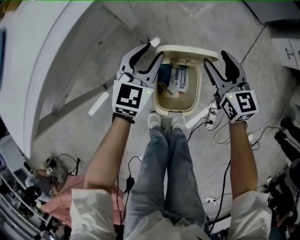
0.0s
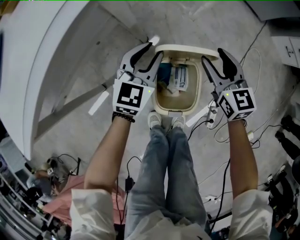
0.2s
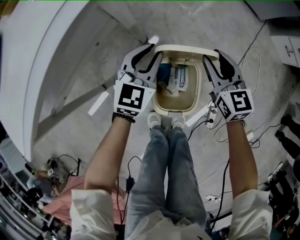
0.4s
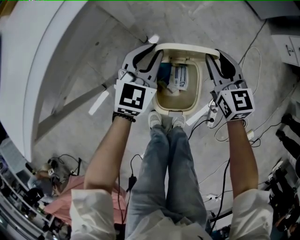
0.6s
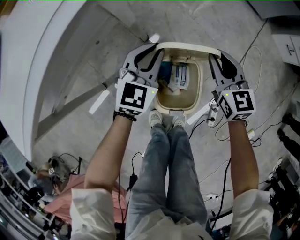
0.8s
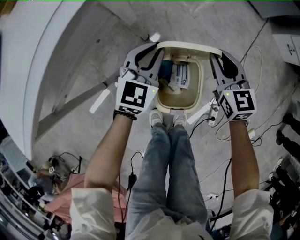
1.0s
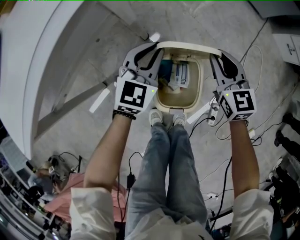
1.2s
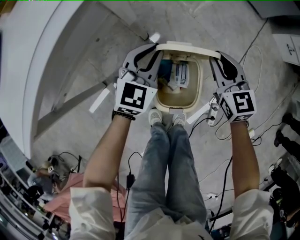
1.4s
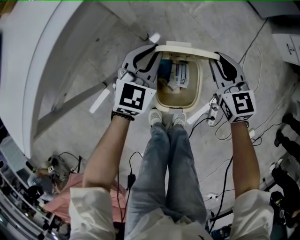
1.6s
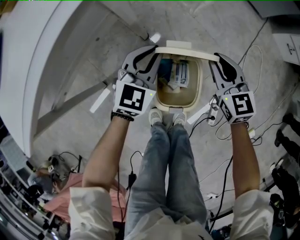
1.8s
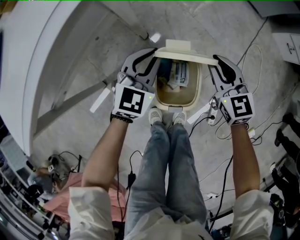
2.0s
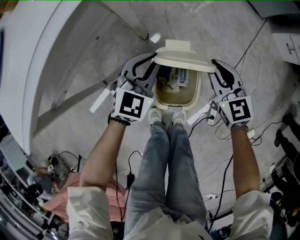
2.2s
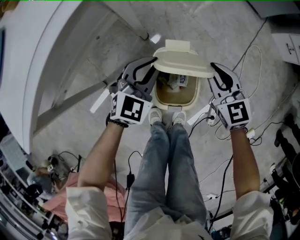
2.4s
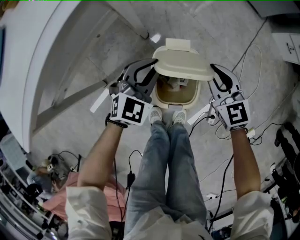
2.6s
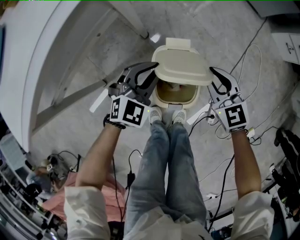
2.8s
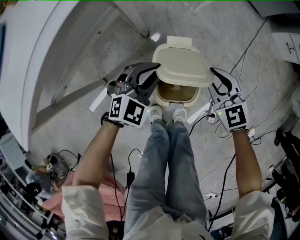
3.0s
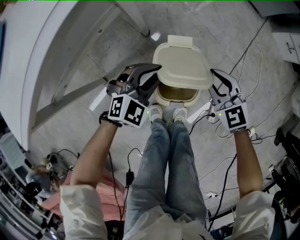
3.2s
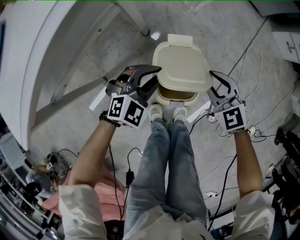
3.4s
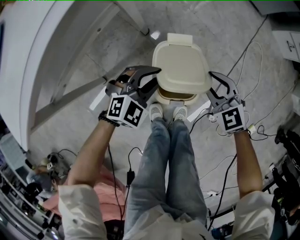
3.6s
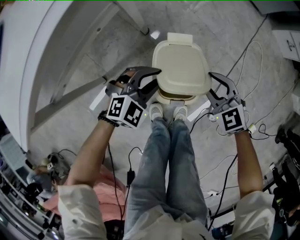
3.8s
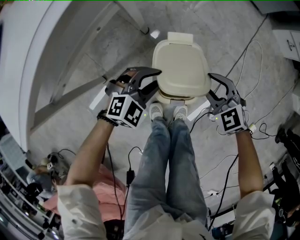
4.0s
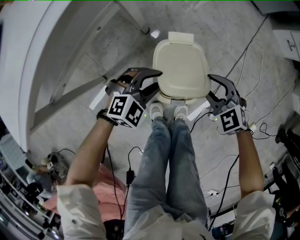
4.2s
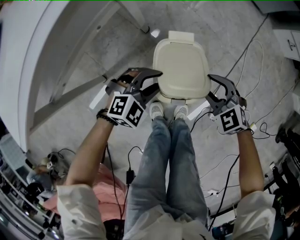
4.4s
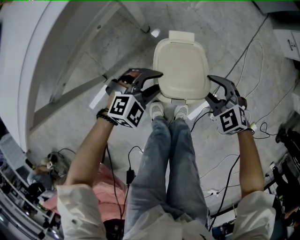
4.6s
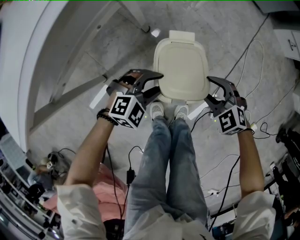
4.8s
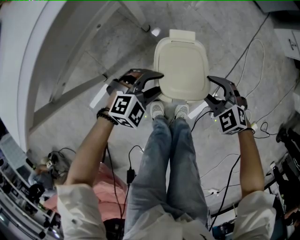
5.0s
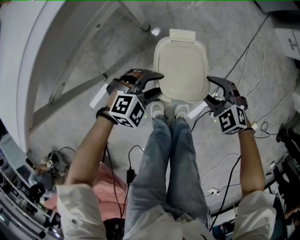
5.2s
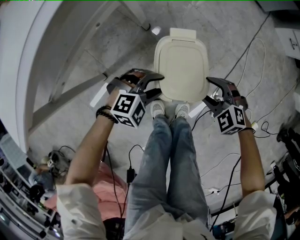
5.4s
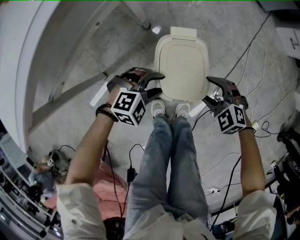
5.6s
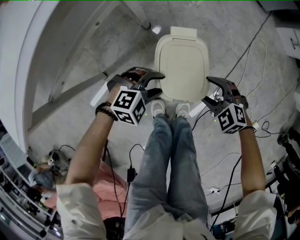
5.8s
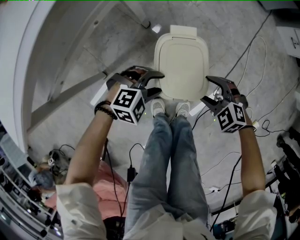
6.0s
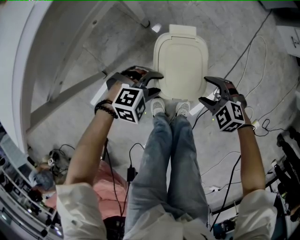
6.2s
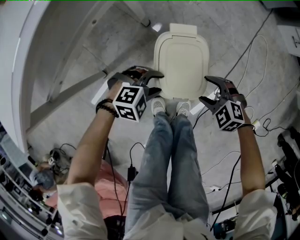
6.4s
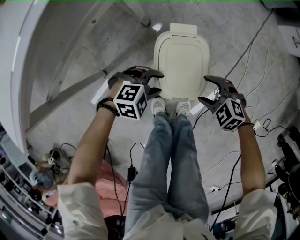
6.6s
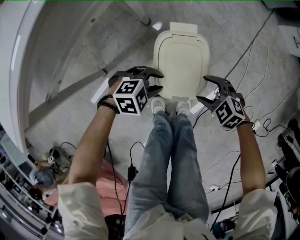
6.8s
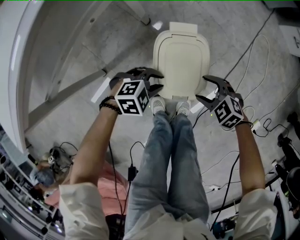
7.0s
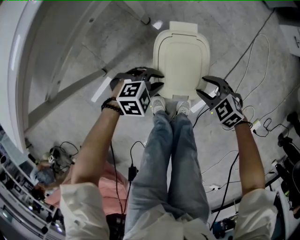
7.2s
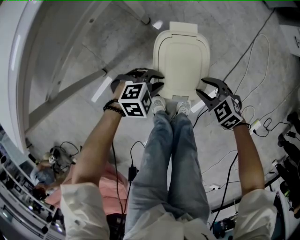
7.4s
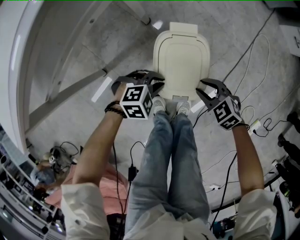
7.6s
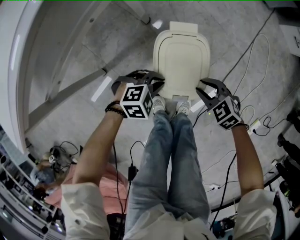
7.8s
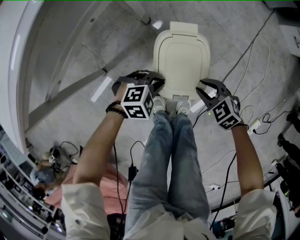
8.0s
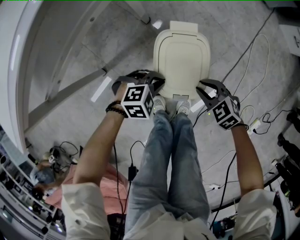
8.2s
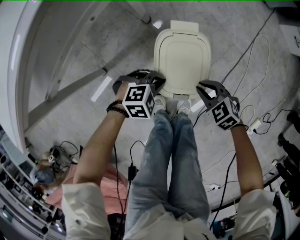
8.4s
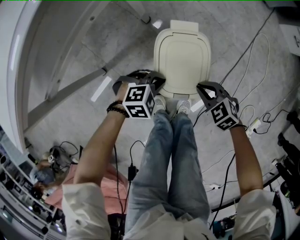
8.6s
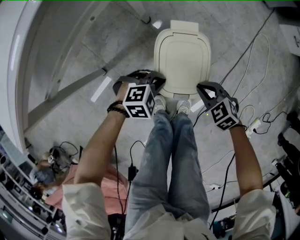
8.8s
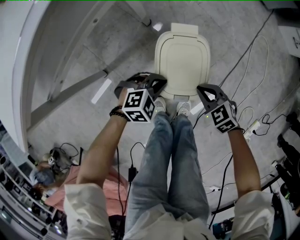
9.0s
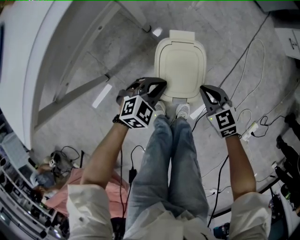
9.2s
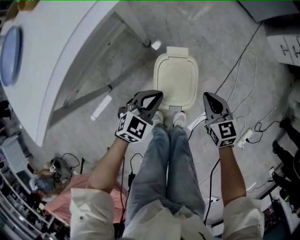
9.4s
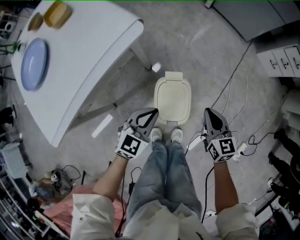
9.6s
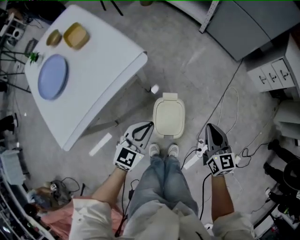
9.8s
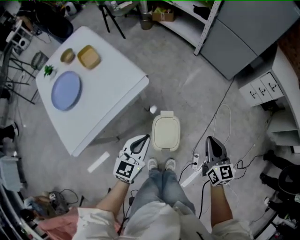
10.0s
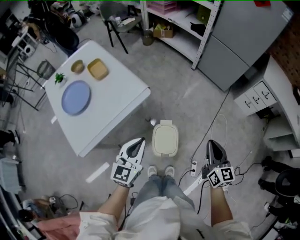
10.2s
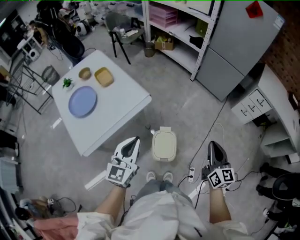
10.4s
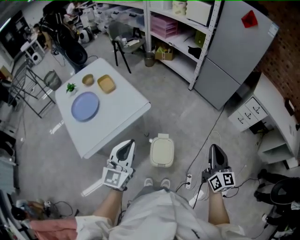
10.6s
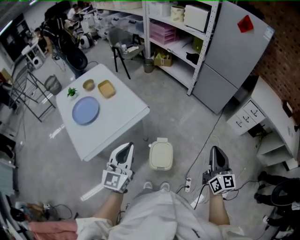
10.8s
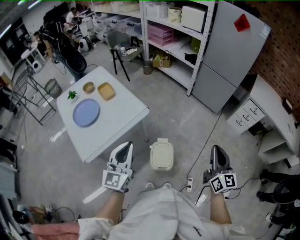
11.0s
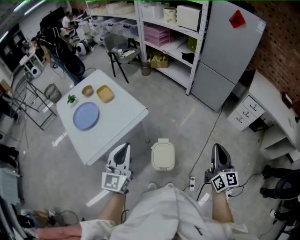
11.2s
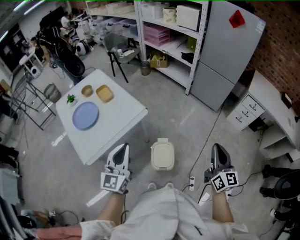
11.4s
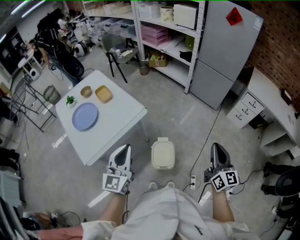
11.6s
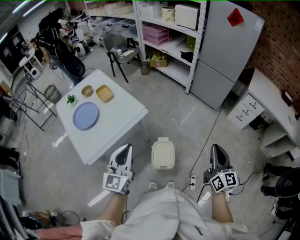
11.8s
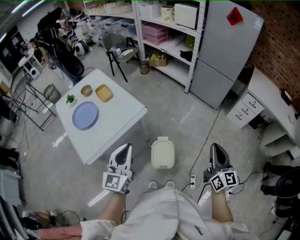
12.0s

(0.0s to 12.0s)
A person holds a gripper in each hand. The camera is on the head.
0.0s - 1.6s: The right gripper closes up.
1.6s - 3.0s: The two grippers go roughly 10 cm backward. The left gripper changes its angle by some 20 degrees.
3.0s - 4.4s: The two grippers go some 5 cm backward. The right gripper turns by approximately 20 degrees.
4.4s - 6.0s: The left gripper shifts by approximately 5 cm; the right gripper moves downward, about 5 cm.
6.0s - 7.6s: The left gripper closes up.
7.6s - 9.0s: The grippers move only a little.
9.0s - 10.4s: Both grippers travel together upward, about 60 cm. The right gripper tips its fingers upward by some 50 degrees. The left gripper points its fingers about 50 degrees further upward.
10.4s - 12.0s: Both grippers move upward and backward, roughly 10 cm.

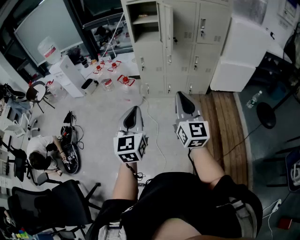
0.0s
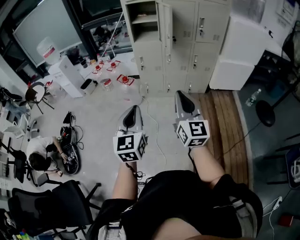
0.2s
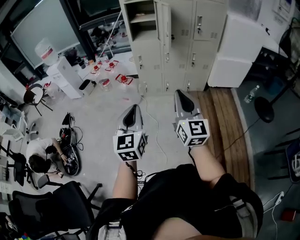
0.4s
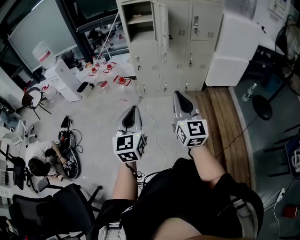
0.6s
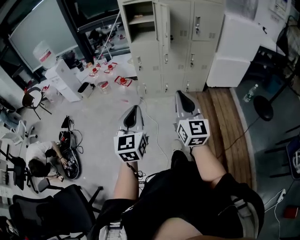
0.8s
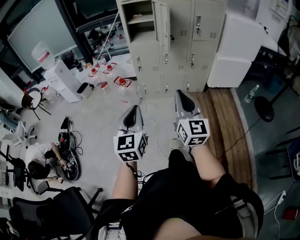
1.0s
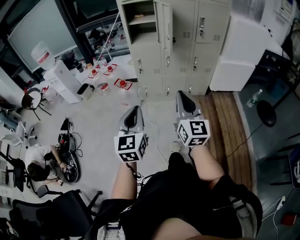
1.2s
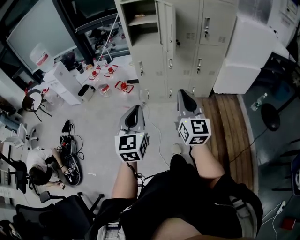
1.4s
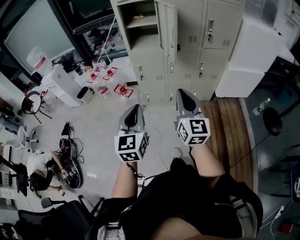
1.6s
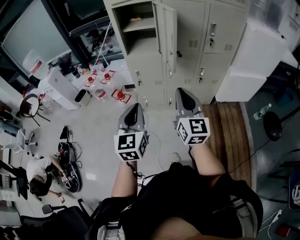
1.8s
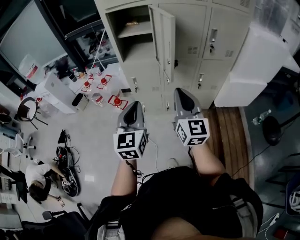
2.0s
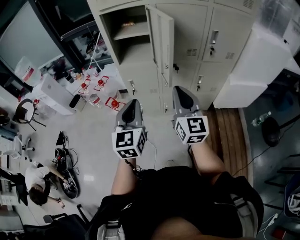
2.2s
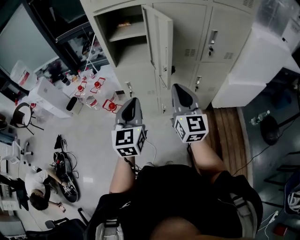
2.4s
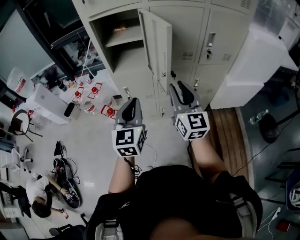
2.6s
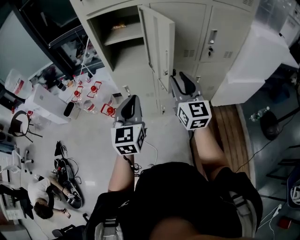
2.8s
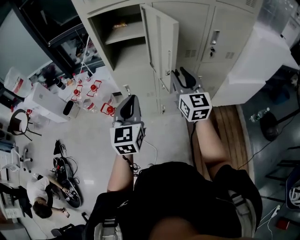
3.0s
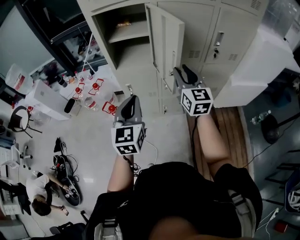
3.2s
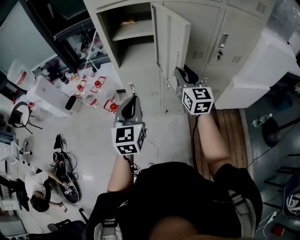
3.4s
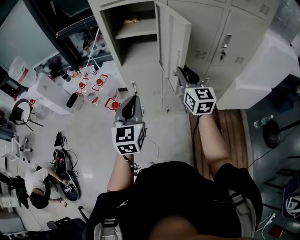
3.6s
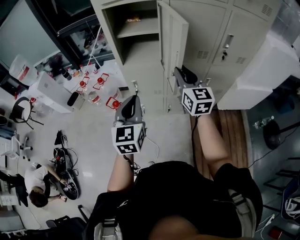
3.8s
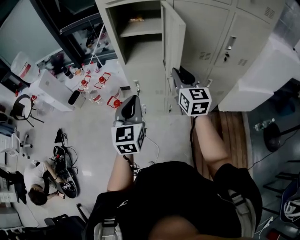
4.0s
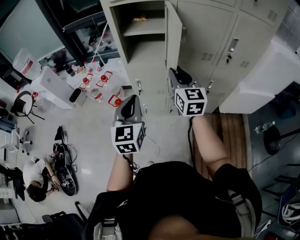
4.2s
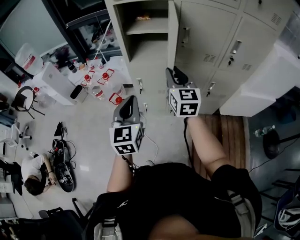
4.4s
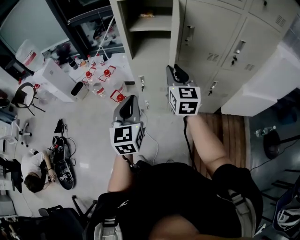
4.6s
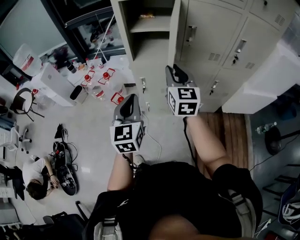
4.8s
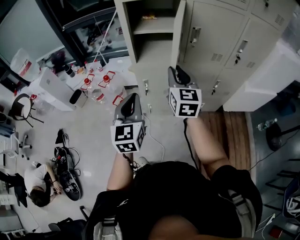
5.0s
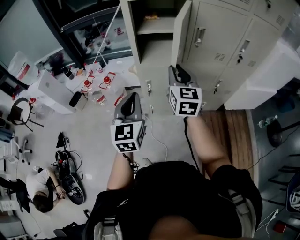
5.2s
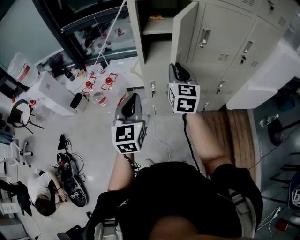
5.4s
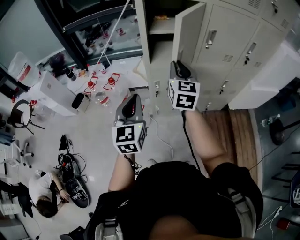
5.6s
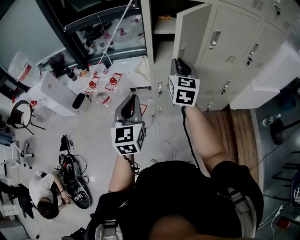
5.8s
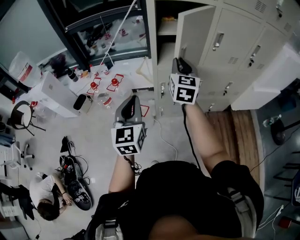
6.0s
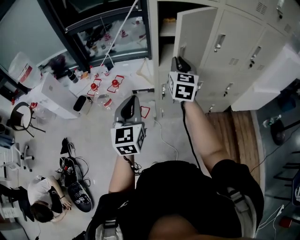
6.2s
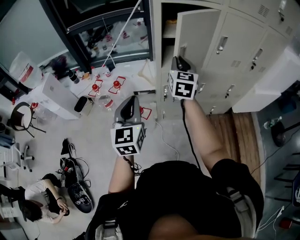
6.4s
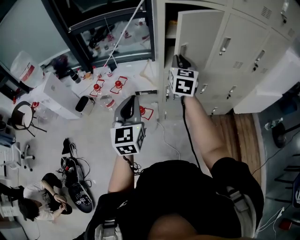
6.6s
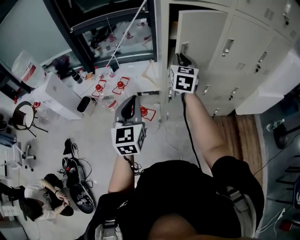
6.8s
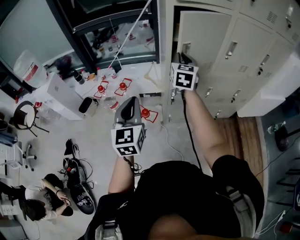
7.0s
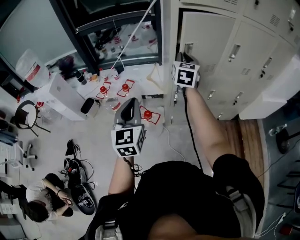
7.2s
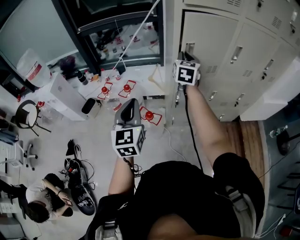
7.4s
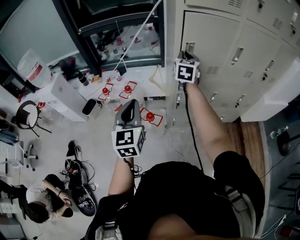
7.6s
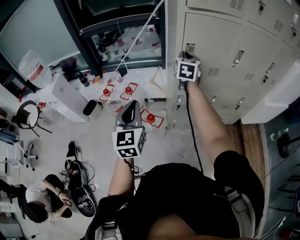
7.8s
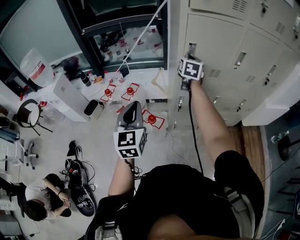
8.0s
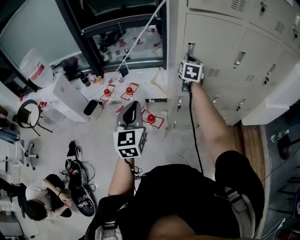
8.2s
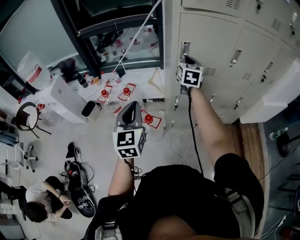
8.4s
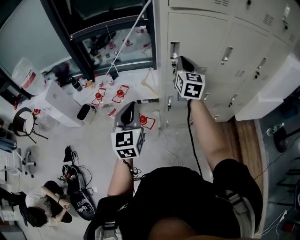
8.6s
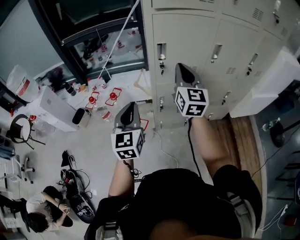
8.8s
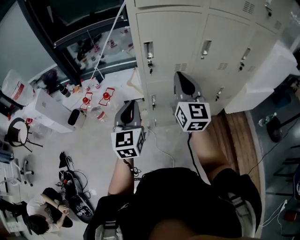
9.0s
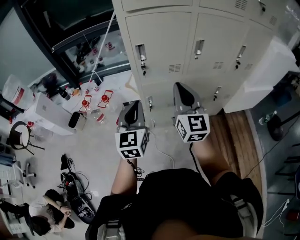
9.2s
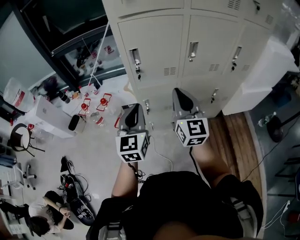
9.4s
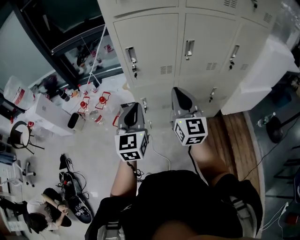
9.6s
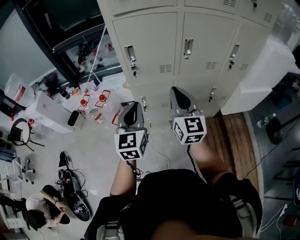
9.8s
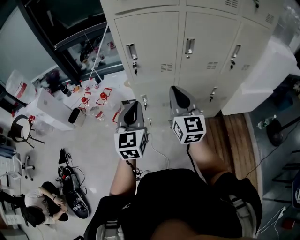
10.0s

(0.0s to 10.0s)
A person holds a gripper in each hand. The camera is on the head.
0.0s - 1.4s: Both grippers travel together forward, about 15 cm.
1.4s - 2.8s: The grippers both shift forward by approximately 35 cm. The right gripper opens.
2.8s - 4.2s: The right gripper is displaced to the left and forward by some 10 cm. The left gripper travels to the left by approximately 5 cm.
4.2s - 5.8s: The left gripper travels to the left by roughly 20 cm. The right gripper shifts some 20 cm to the left and forward.
5.8s - 7.2s: The left gripper moves to the left, roughly 10 cm. The right gripper goes about 15 cm forward and to the left.
7.2s - 8.6s: The right gripper reaches approximately 5 cm forward, then returns.
8.6s - 10.0s: The right gripper goes approximately 25 cm backward and to the right, while the left gripper moves to the right, roughly 20 cm.

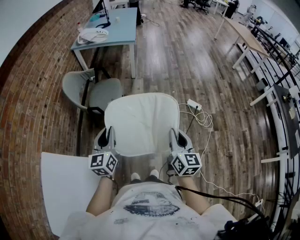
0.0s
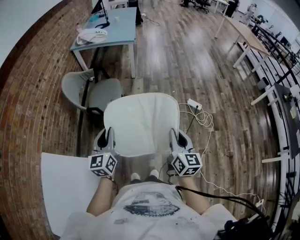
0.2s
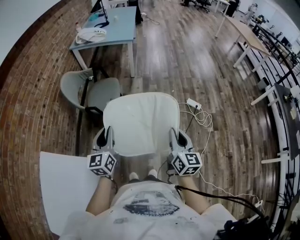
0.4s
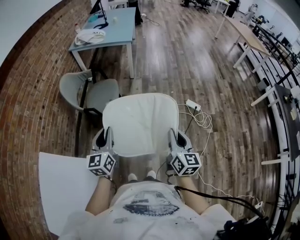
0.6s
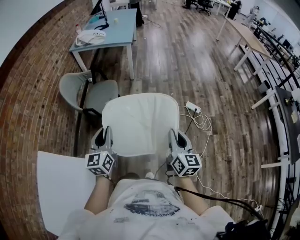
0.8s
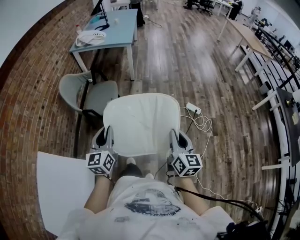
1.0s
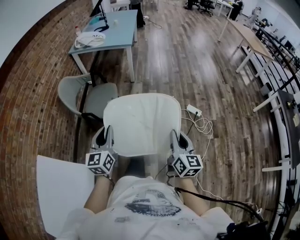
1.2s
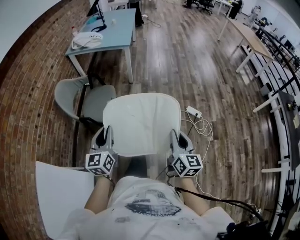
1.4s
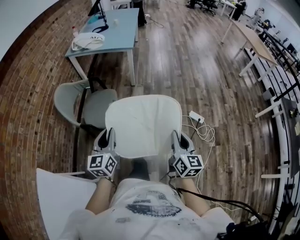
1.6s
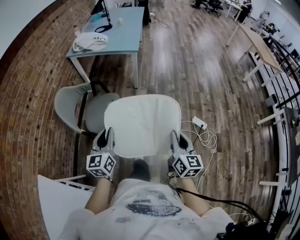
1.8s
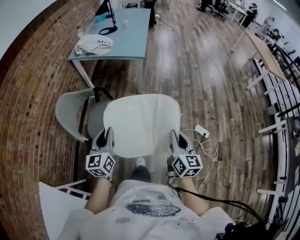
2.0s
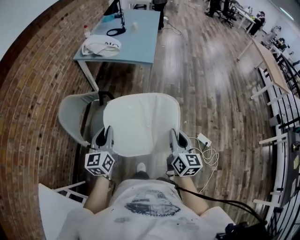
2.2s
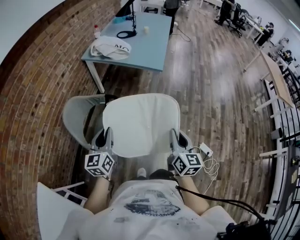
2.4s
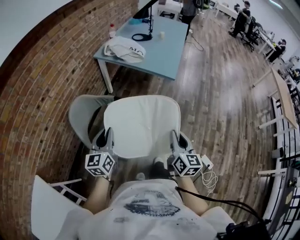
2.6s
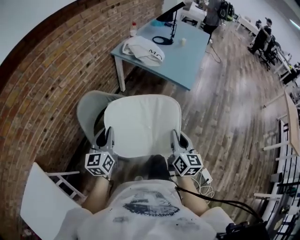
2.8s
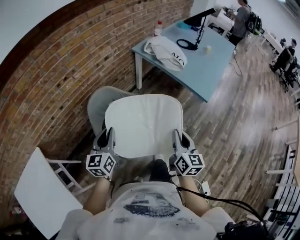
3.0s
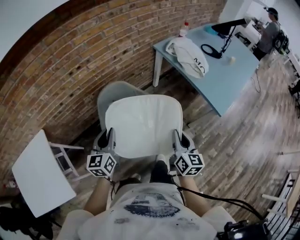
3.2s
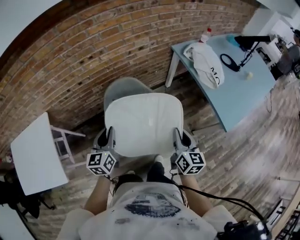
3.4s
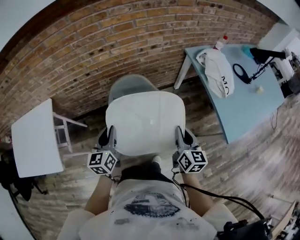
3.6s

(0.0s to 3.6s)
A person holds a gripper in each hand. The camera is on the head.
0.0s - 1.8s: The grippers both shift forward by about 25 cm.
1.8s - 3.6s: The left gripper ends up approximately 35 cm from where it was, and rotates approximately 70 degrees; the right gripper ends up roughly 70 cm from where it was, and turns by some 70 degrees.
